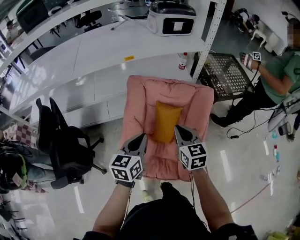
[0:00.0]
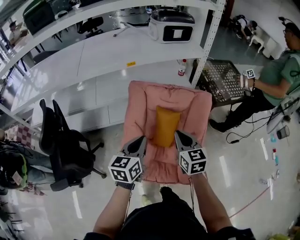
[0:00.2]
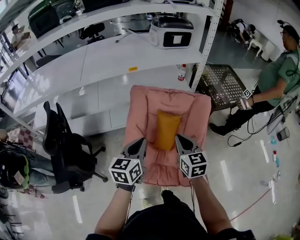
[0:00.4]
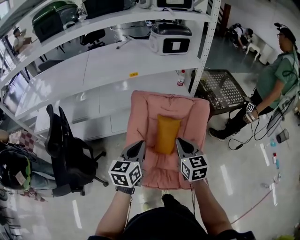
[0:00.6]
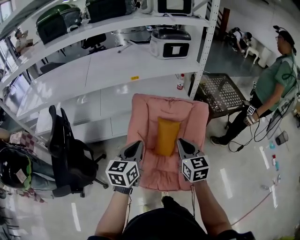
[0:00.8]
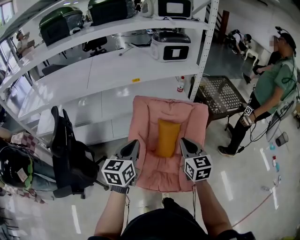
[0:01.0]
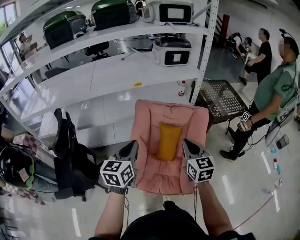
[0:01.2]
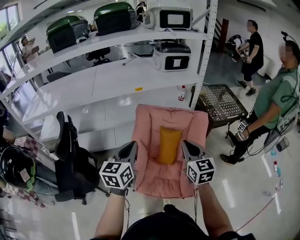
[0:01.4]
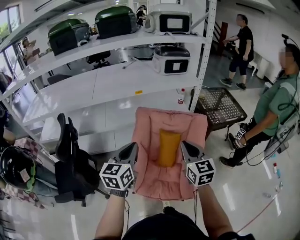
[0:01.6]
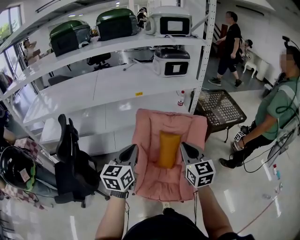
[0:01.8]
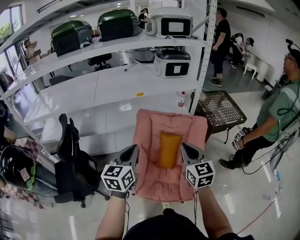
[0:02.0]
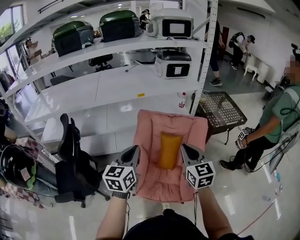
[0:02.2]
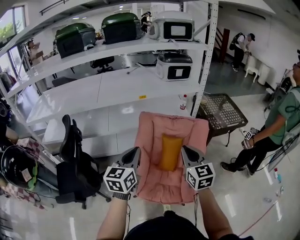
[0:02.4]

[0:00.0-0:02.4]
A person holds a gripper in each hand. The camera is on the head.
0:00.0 to 0:01.2: The right gripper heads upward and backward, covering roughly 15 cm. Meanwhile the left gripper shifts roughly 15 cm upward, backward and to the left.
0:01.2 to 0:02.4: The right gripper is displaced upward by roughly 5 cm.

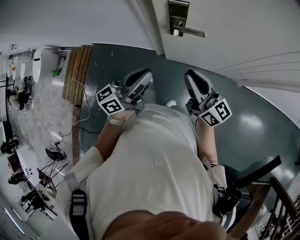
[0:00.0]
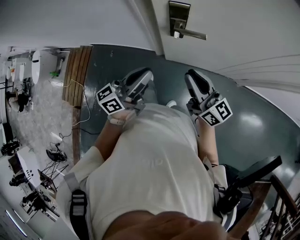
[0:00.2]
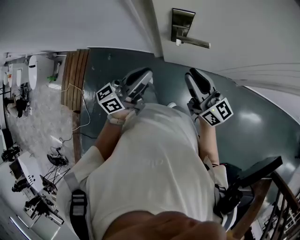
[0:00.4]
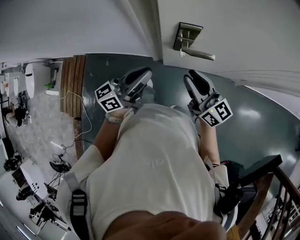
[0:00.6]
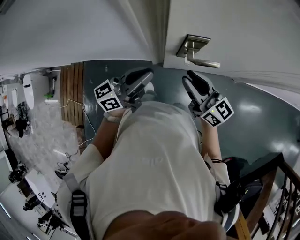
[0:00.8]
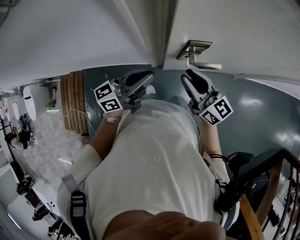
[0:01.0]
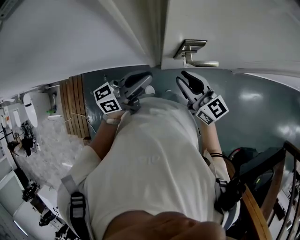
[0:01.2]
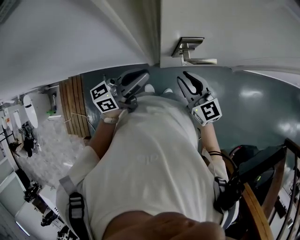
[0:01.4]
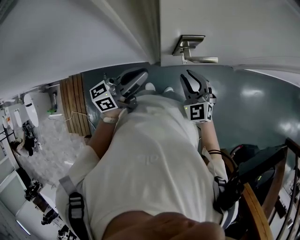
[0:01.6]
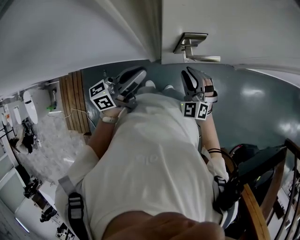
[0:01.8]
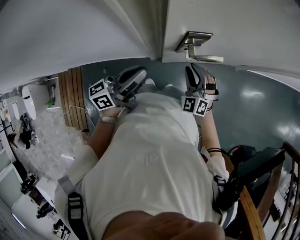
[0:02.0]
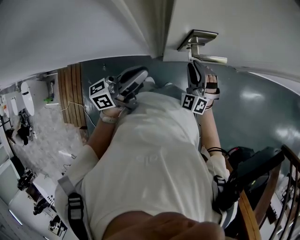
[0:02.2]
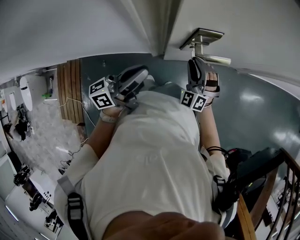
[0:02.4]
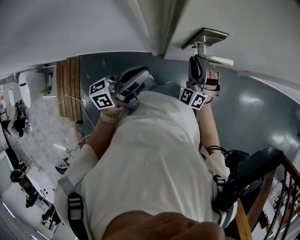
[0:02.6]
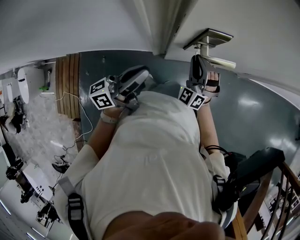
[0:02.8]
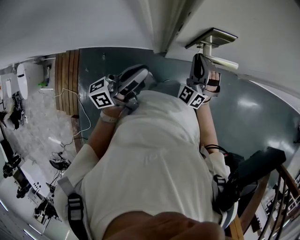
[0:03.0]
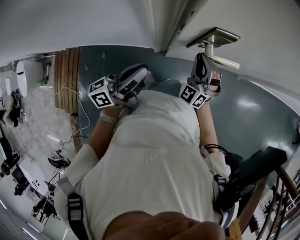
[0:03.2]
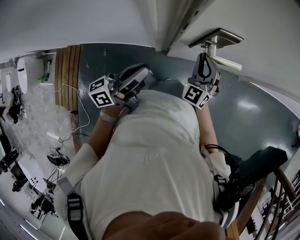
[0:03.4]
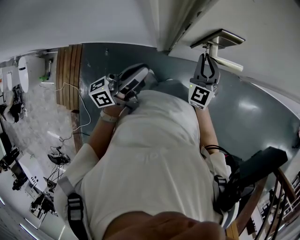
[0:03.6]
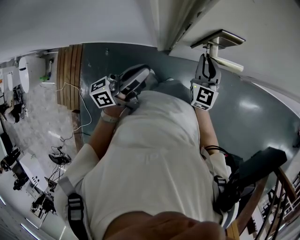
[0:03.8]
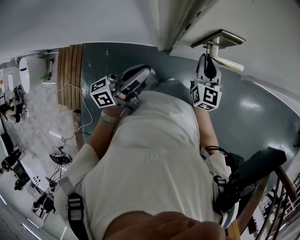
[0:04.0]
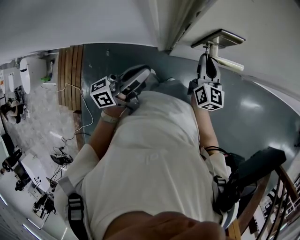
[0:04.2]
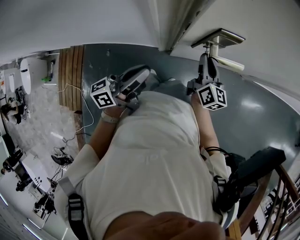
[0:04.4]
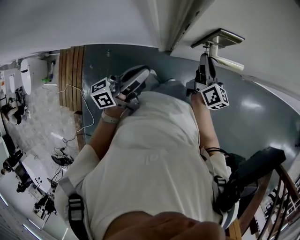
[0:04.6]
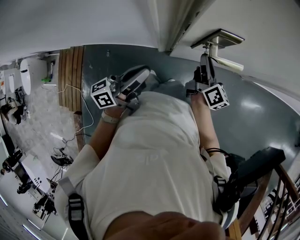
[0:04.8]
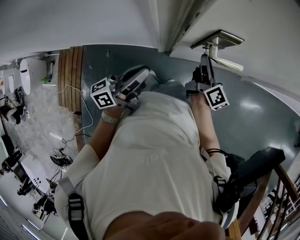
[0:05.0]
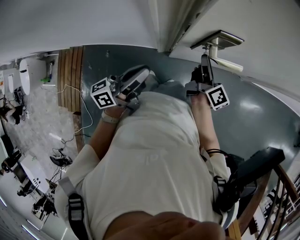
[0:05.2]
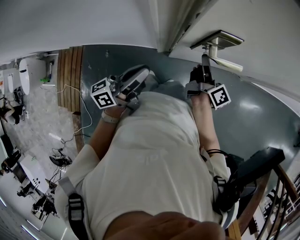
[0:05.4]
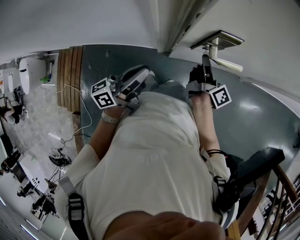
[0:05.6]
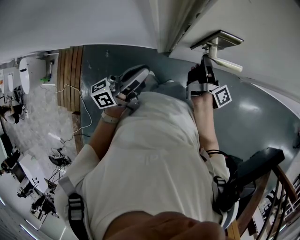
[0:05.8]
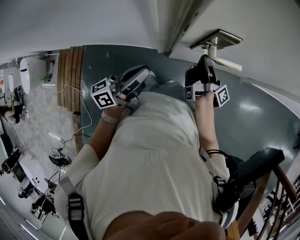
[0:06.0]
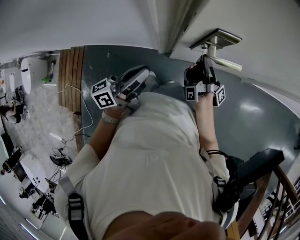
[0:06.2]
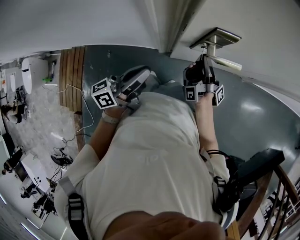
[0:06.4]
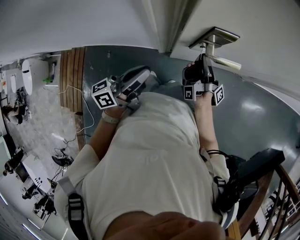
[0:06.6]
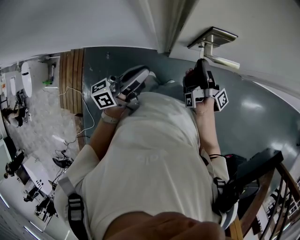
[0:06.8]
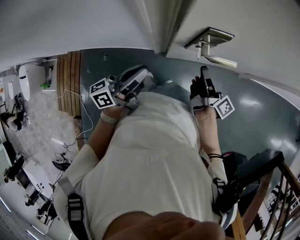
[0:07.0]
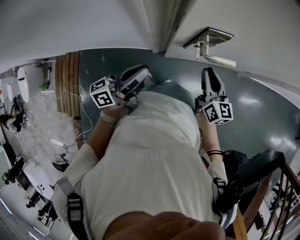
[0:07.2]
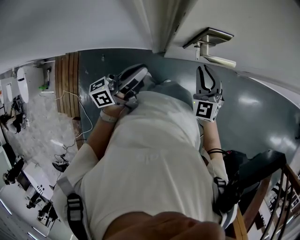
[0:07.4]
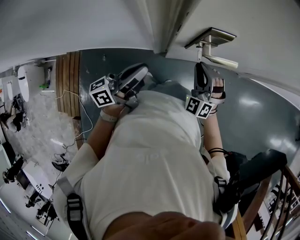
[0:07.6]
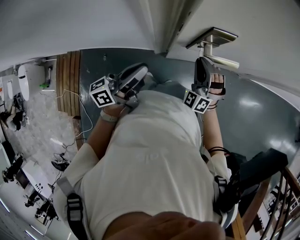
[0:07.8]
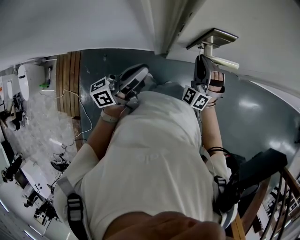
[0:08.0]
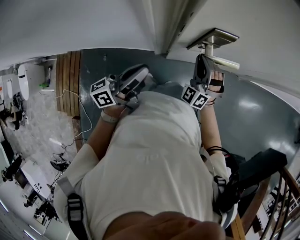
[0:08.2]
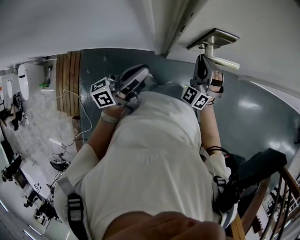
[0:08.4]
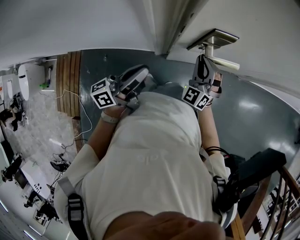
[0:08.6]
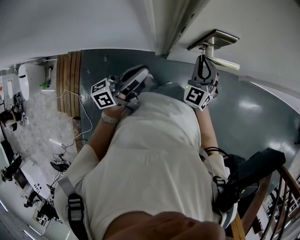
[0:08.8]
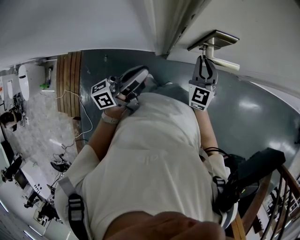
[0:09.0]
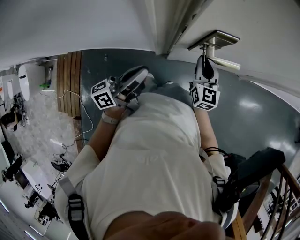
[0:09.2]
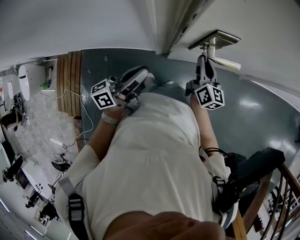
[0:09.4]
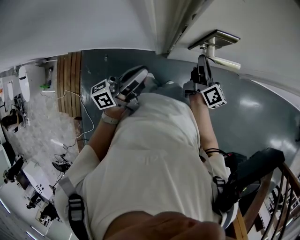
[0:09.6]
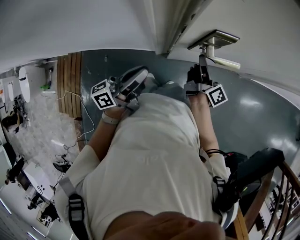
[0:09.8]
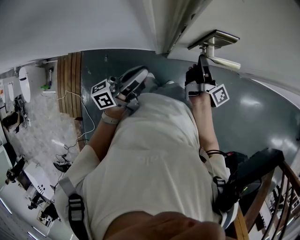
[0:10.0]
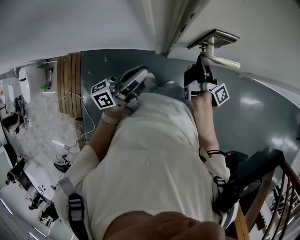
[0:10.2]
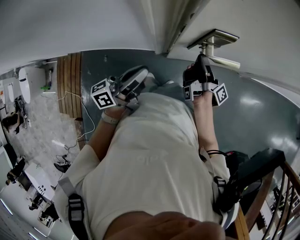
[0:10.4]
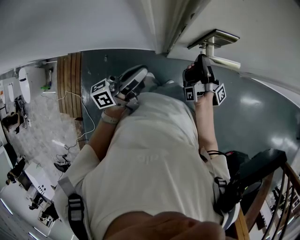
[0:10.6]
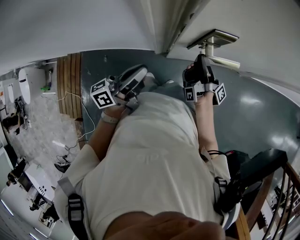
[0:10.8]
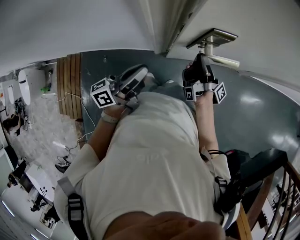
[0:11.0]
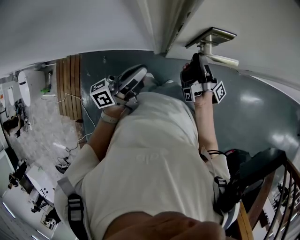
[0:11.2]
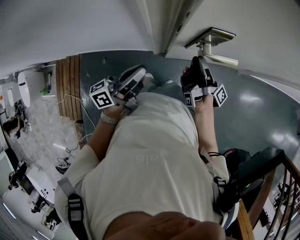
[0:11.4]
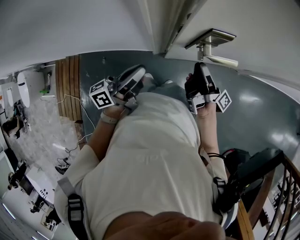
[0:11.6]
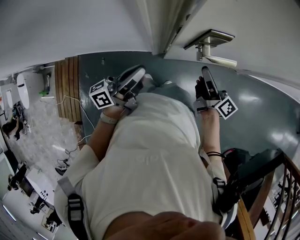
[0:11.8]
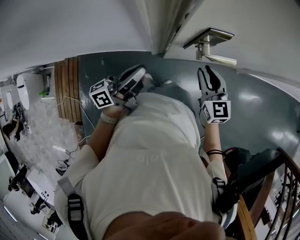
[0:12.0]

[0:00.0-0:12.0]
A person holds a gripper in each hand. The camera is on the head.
0:00.0 to 0:01.6: The left gripper changes place by roughly 20 cm, and changes its angle by about 20 degrees; the right gripper shifts by roughly 20 cm, and tilts its fingers about 30 degrees downward.
0:01.6 to 0:03.0: The right gripper goes some 10 cm downward and forward, and changes its angle by some 40 degrees. The left gripper heads downward, covering approximately 5 cm.
0:03.0 to 0:04.4: The right gripper twists some 90 degrees clockwise, seen from behind.
0:04.4 to 0:06.0: The right gripper rotates around the line of its fingers by about 70 degrees, clockwise from behind.
0:06.0 to 0:07.6: The right gripper travels backward by approximately 5 cm, and twists approximately 160 degrees counterclockwise, seen from behind.
0:07.6 to 0:09.0: The right gripper rotates around the line of its fingers by roughly 40 degrees, clockwise from behind.
0:09.0 to 0:10.4: The right gripper rolls clockwise, seen from behind, by approximately 120 degrees.
0:10.4 to 0:12.0: The right gripper is displaced backward and upward by about 5 cm, and rotates around the line of its fingers by about 110 degrees, counterclockwise from behind.

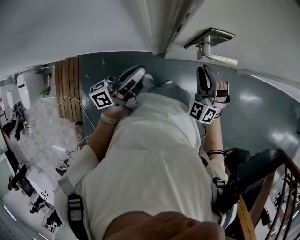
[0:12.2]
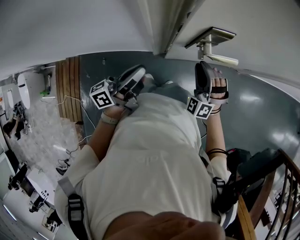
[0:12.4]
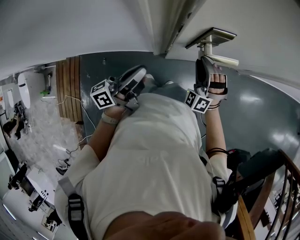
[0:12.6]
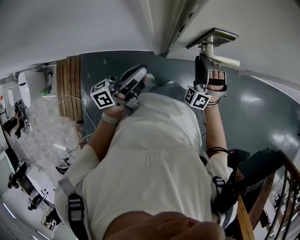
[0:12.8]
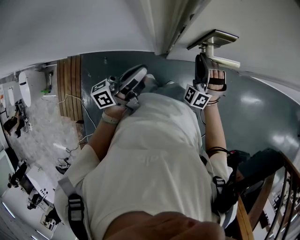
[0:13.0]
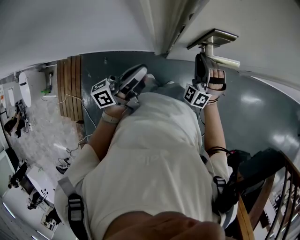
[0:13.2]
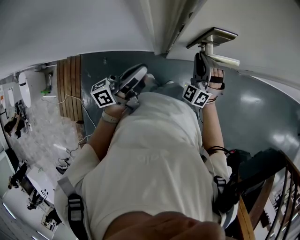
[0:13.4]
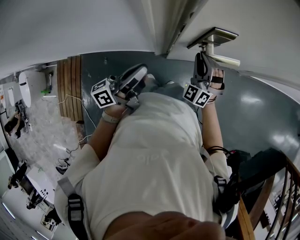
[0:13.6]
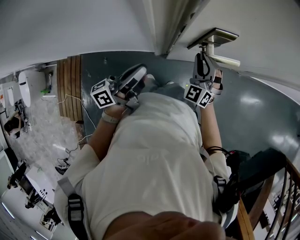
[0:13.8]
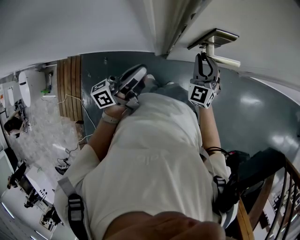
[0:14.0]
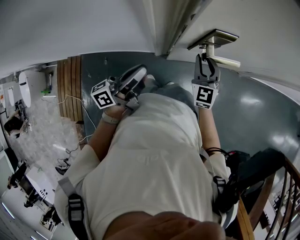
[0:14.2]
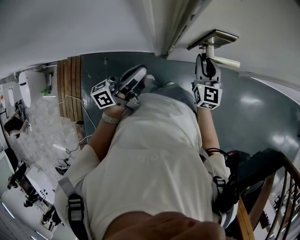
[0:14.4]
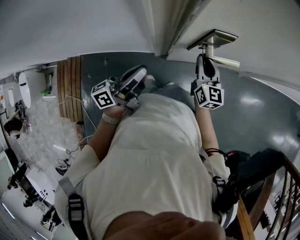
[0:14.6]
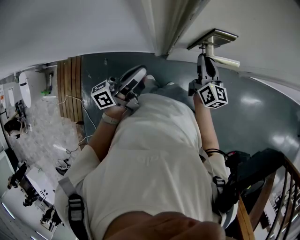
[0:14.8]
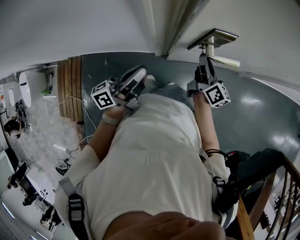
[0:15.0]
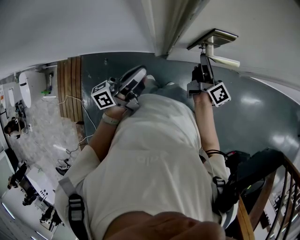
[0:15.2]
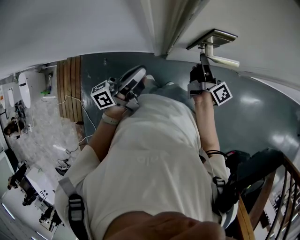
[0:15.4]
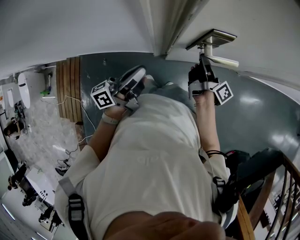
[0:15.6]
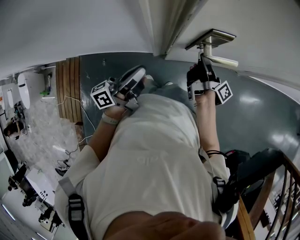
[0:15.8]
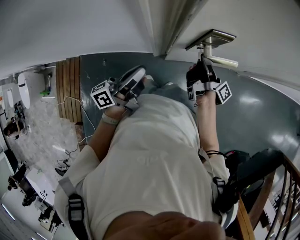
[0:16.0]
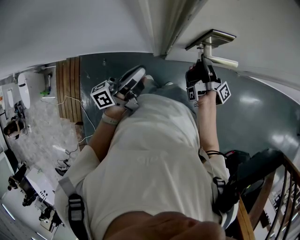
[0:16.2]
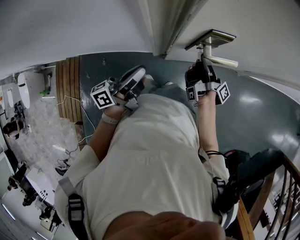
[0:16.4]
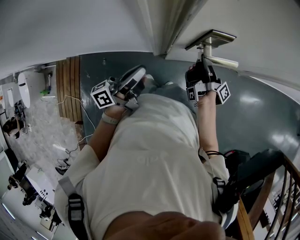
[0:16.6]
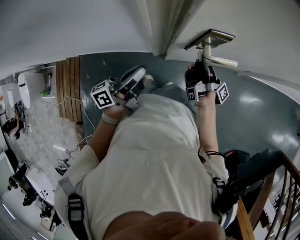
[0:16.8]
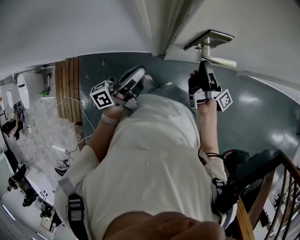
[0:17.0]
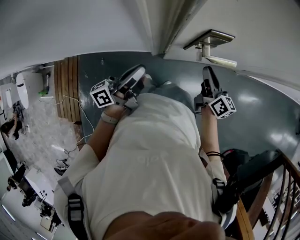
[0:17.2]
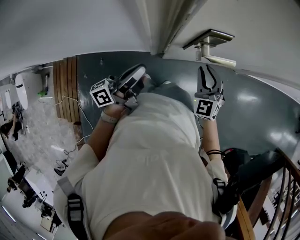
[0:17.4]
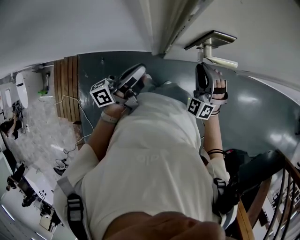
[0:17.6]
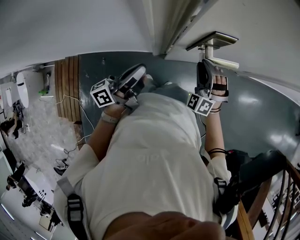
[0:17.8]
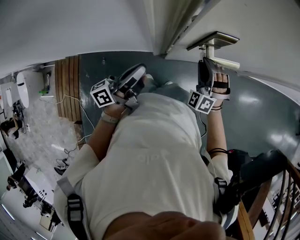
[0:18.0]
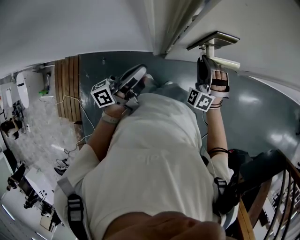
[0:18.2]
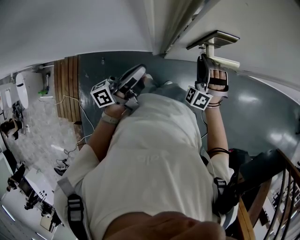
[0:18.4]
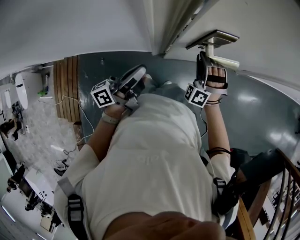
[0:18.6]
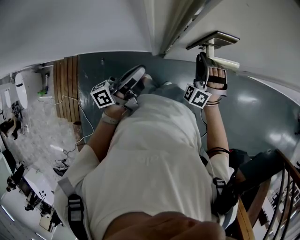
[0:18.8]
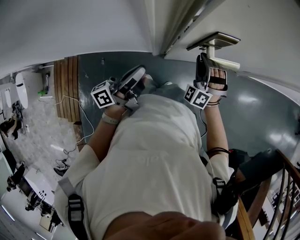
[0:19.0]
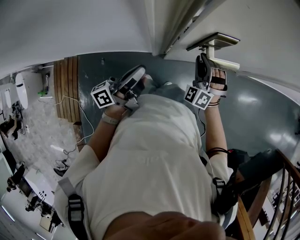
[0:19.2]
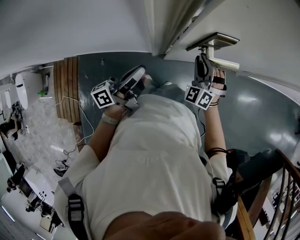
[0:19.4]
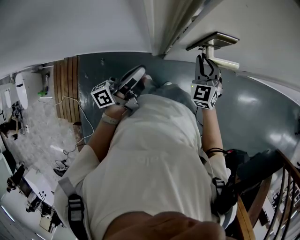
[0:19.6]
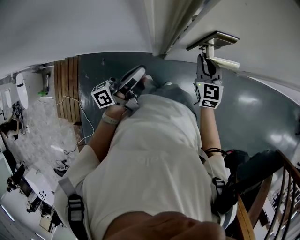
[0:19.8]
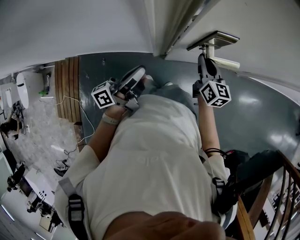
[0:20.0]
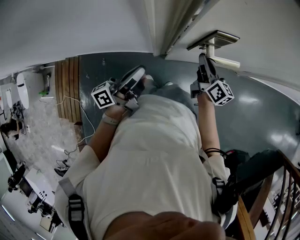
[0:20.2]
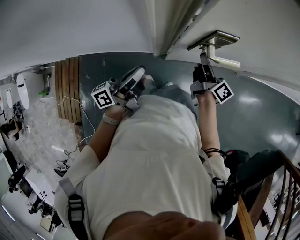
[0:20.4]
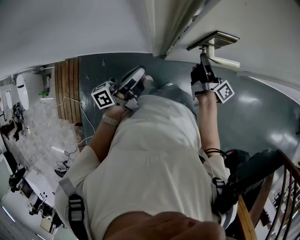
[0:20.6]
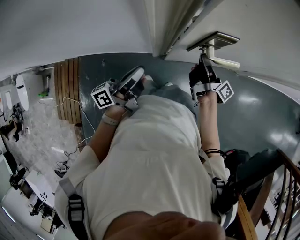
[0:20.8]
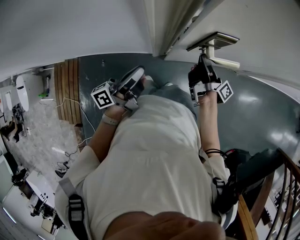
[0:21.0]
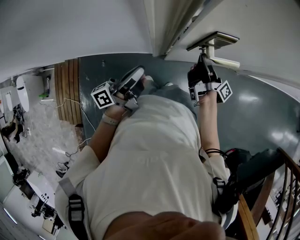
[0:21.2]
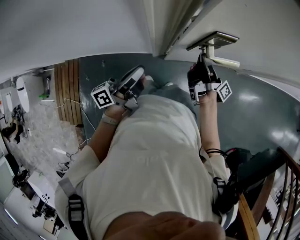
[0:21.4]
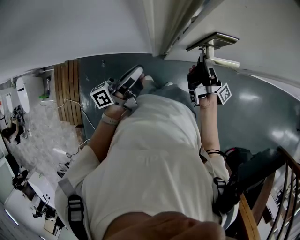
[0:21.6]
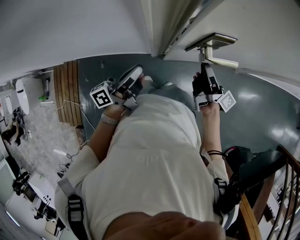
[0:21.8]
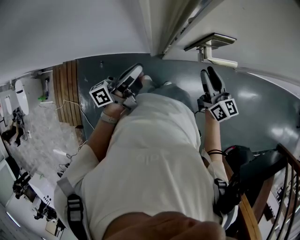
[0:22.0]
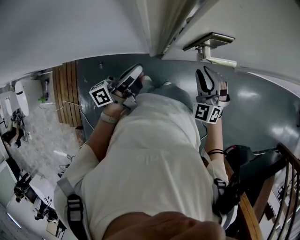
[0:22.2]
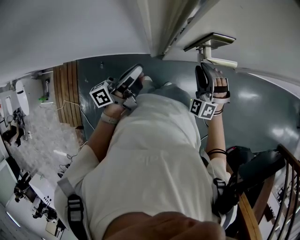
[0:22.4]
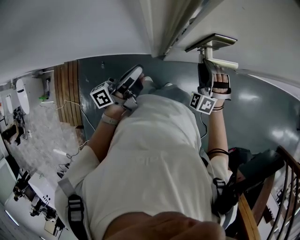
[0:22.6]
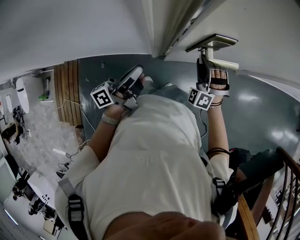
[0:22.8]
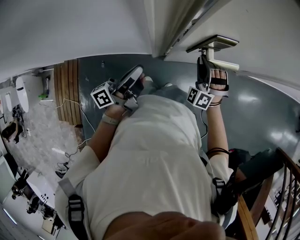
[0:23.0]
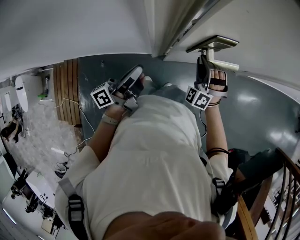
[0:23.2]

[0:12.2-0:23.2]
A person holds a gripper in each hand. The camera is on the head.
0:12.2 to 0:13.8: The right gripper ends up roughly 5 cm from where it was.
0:13.8 to 0:15.4: The right gripper rolls clockwise, seen from behind, by about 120 degrees.
0:15.4 to 0:17.0: The right gripper rotates about 20 degrees.
0:17.0 to 0:18.4: The right gripper turns by approximately 180 degrees.
0:18.4 to 0:20.0: The right gripper twists about 100 degrees clockwise, seen from behind.
0:20.0 to 0:21.6: The right gripper rotates around the line of its fingers by approximately 80 degrees, clockwise from behind.
0:21.6 to 0:23.2: The right gripper turns by some 180 degrees.
